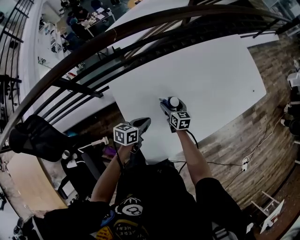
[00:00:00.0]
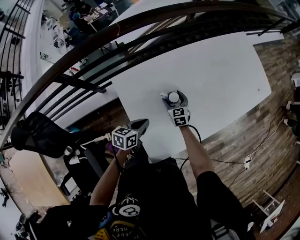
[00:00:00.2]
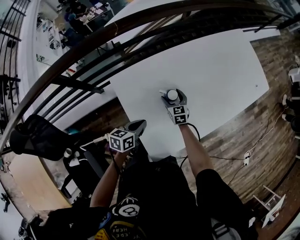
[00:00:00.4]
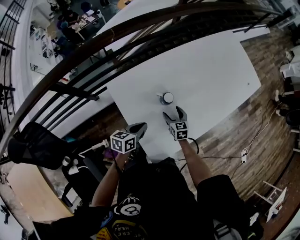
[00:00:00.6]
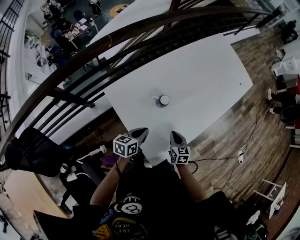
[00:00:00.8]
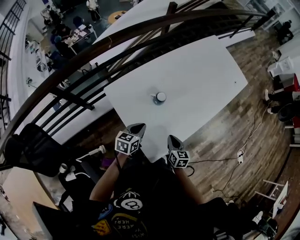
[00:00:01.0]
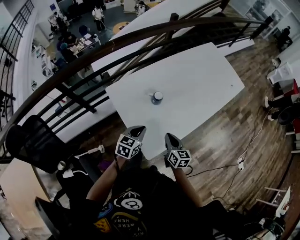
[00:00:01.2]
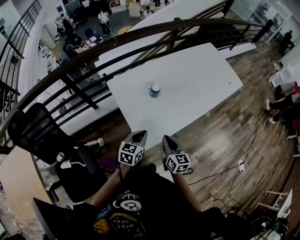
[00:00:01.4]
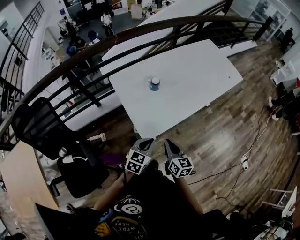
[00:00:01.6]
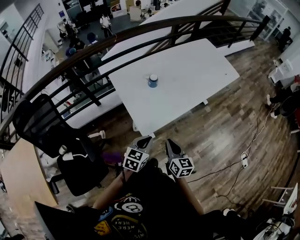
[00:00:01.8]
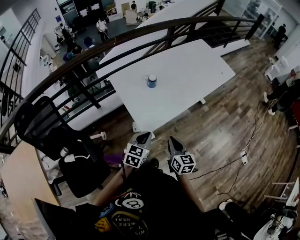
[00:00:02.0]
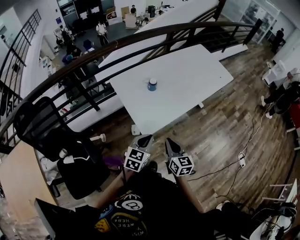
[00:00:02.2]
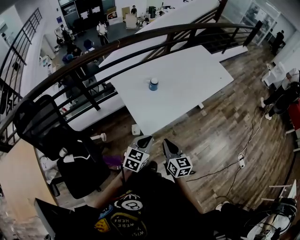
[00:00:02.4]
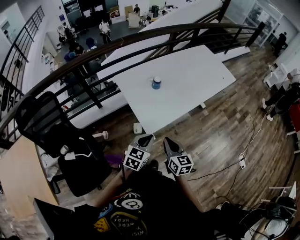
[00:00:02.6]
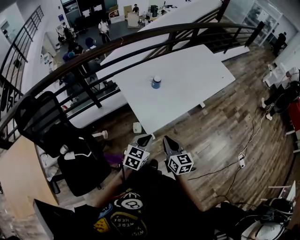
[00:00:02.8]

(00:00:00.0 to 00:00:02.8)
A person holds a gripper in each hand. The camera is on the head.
00:00:00.0 - 00:00:01.4: The left gripper travels backward, upward and to the right by about 25 cm, and swivels roughly 30 degrees; the right gripper is displaced backward and upward by roughly 35 cm, and closes up.
00:00:01.4 - 00:00:02.8: The left gripper travels backward by roughly 15 cm; the right gripper goes approximately 15 cm backward and upward.

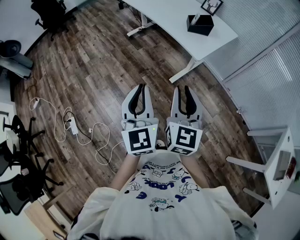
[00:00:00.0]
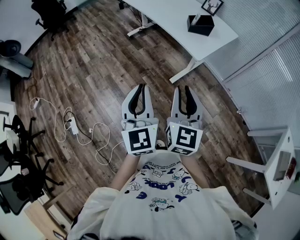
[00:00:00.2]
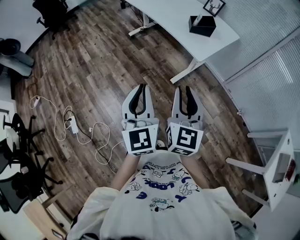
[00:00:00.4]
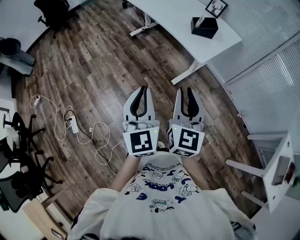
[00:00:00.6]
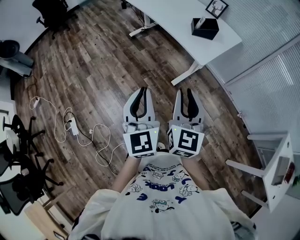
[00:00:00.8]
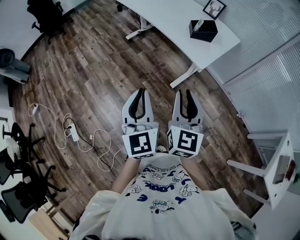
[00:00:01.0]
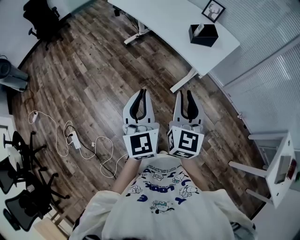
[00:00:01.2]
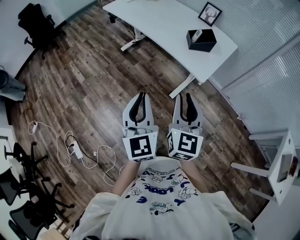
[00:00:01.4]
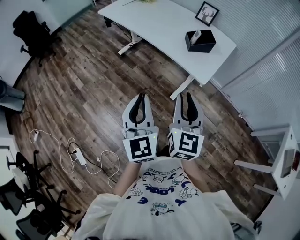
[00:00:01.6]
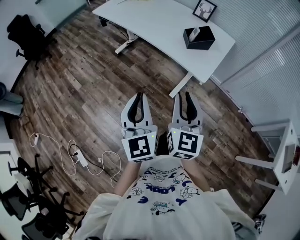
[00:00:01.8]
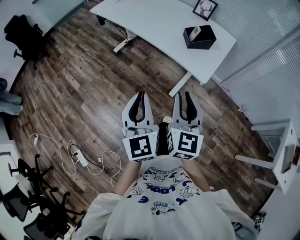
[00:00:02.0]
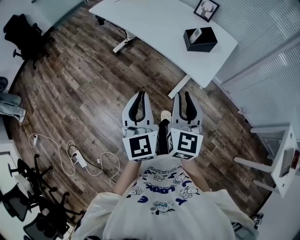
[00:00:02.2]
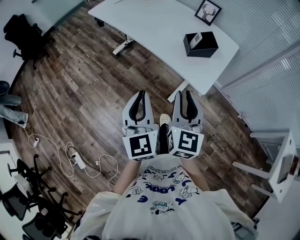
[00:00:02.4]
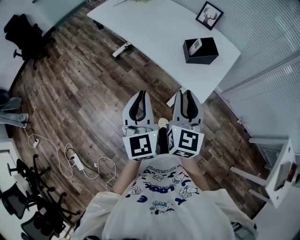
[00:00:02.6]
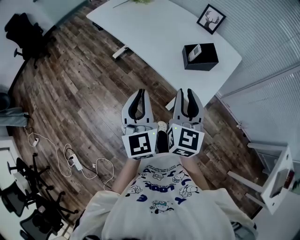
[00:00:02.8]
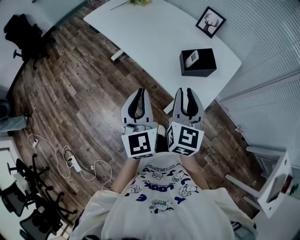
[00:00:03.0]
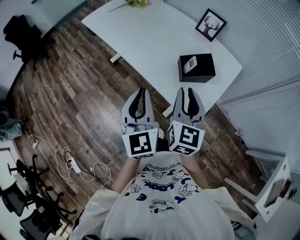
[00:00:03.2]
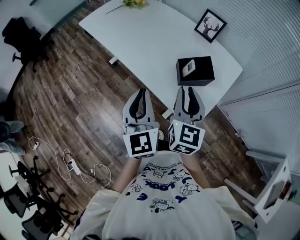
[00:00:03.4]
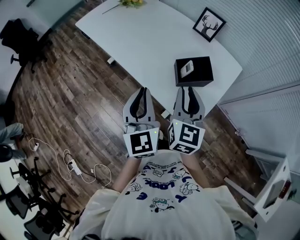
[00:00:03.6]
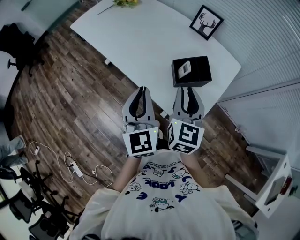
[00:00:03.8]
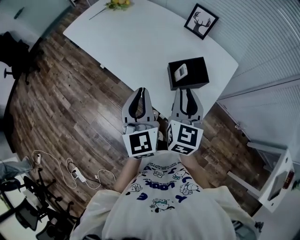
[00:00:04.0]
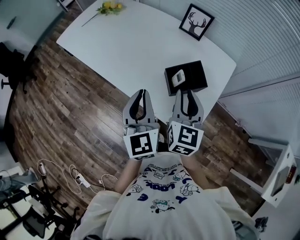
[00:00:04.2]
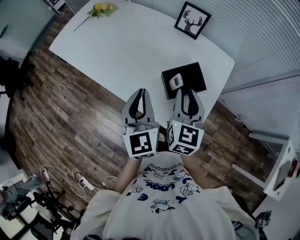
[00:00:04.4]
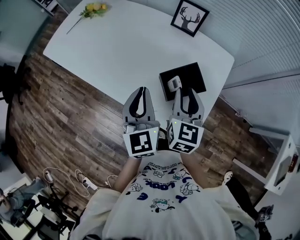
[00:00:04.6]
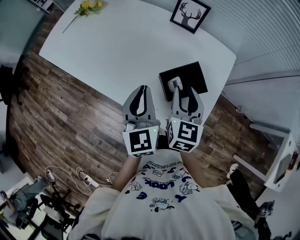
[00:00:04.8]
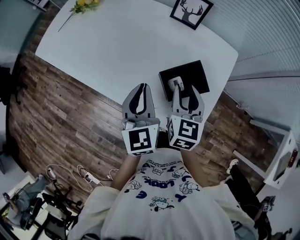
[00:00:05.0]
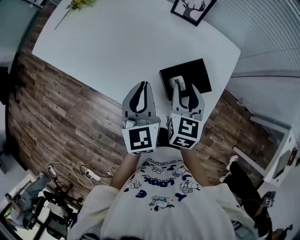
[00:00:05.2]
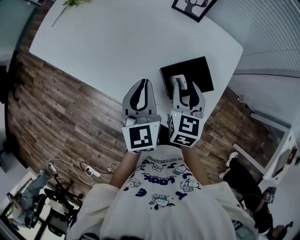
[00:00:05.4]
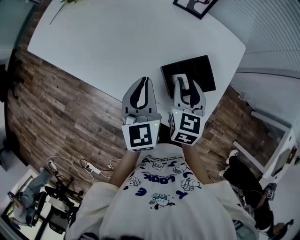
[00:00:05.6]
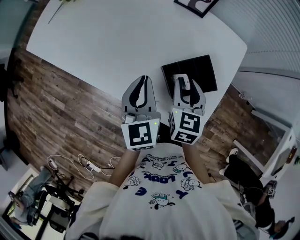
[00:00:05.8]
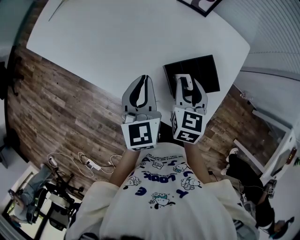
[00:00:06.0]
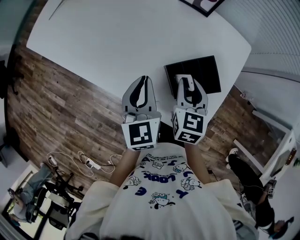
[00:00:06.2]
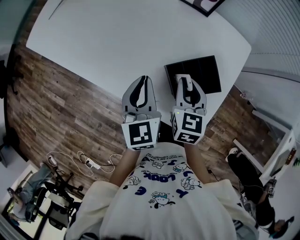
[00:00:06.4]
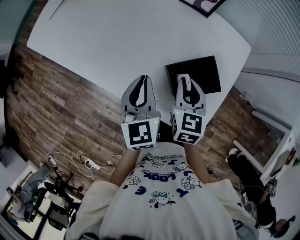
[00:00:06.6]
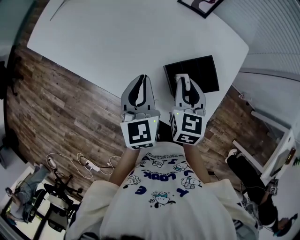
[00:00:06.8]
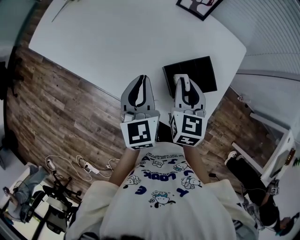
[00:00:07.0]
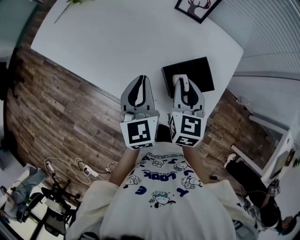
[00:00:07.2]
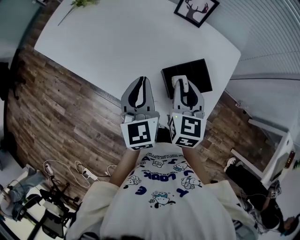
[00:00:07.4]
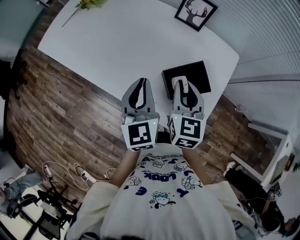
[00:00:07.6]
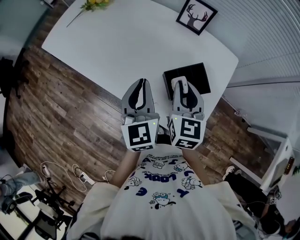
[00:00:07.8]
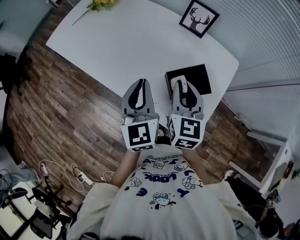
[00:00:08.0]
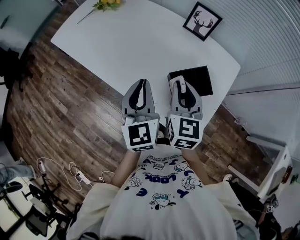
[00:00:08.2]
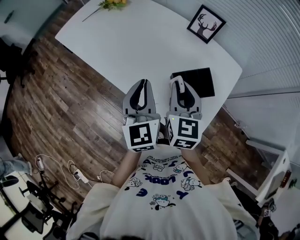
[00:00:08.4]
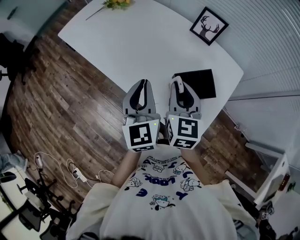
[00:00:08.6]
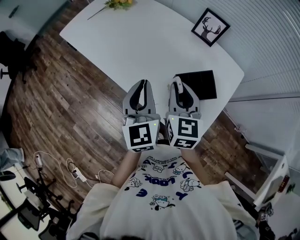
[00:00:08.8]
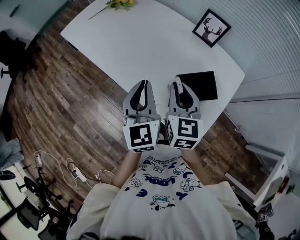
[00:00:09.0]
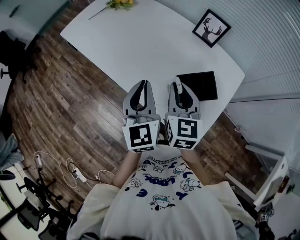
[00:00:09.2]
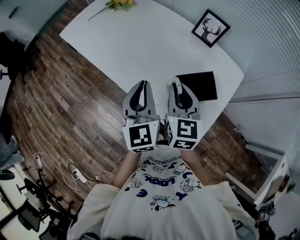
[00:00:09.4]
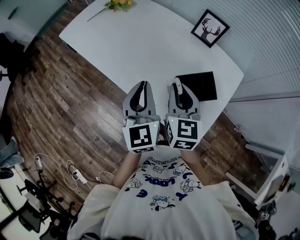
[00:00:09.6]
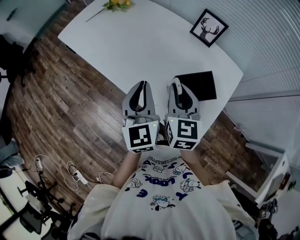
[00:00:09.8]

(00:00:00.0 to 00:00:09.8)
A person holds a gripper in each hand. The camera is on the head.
00:00:00.0 - 00:00:01.4: Both grippers move forward, about 15 cm.
00:00:01.4 - 00:00:02.8: Both grippers travel together forward, about 25 cm.
00:00:02.8 - 00:00:04.2: The right gripper travels forward and to the right by roughly 25 cm. Meanwhile the left gripper moves forward, some 25 cm.
00:00:04.2 - 00:00:05.6: The right gripper is displaced downward and forward by roughly 15 cm, while the left gripper moves forward and downward, approximately 15 cm.
00:00:05.6 - 00:00:07.0: The grippers move only a little.
00:00:07.0 - 00:00:08.4: The right gripper shifts about 10 cm upward and to the left; the left gripper heads upward and backward, covering some 10 cm.
00:00:08.4 - 00:00:09.8: The grippers make only small movements.

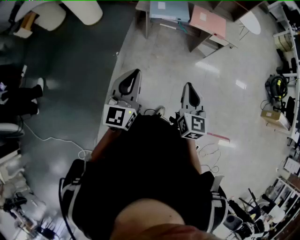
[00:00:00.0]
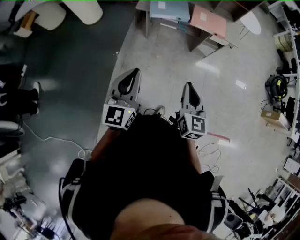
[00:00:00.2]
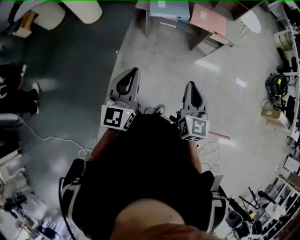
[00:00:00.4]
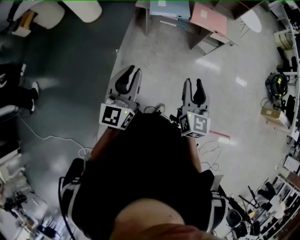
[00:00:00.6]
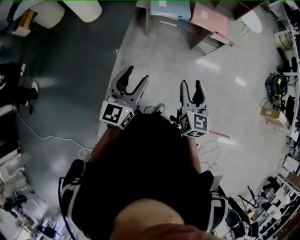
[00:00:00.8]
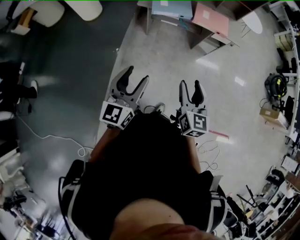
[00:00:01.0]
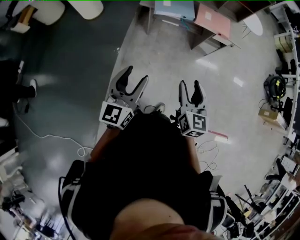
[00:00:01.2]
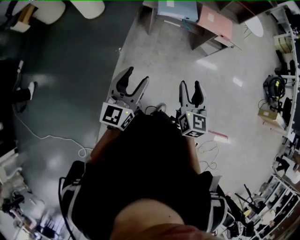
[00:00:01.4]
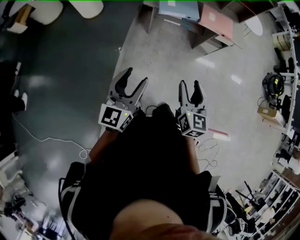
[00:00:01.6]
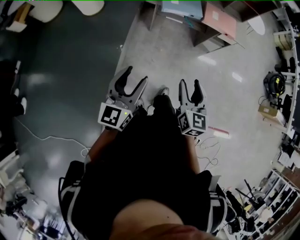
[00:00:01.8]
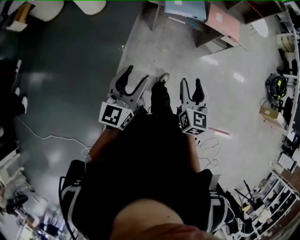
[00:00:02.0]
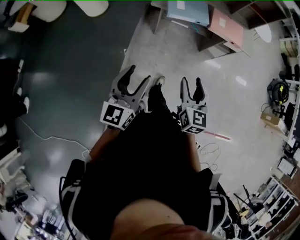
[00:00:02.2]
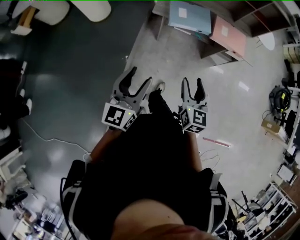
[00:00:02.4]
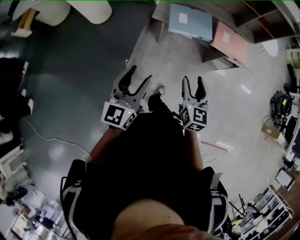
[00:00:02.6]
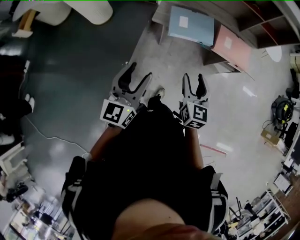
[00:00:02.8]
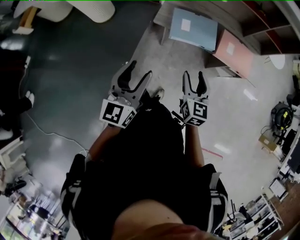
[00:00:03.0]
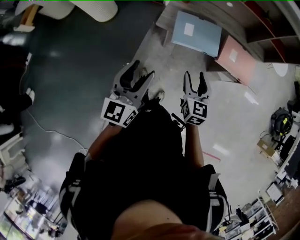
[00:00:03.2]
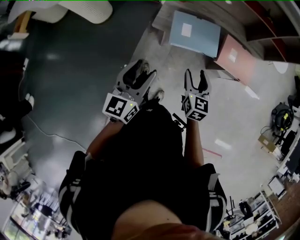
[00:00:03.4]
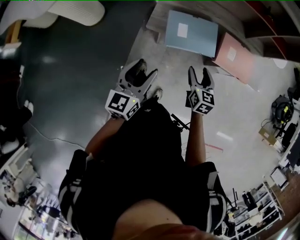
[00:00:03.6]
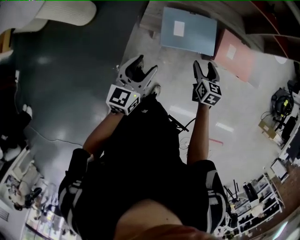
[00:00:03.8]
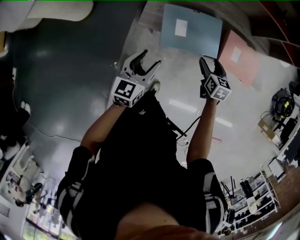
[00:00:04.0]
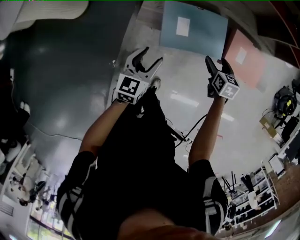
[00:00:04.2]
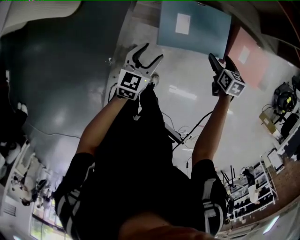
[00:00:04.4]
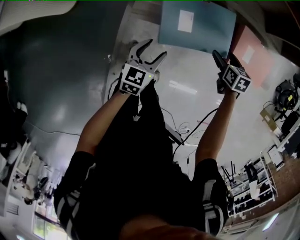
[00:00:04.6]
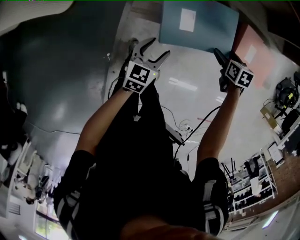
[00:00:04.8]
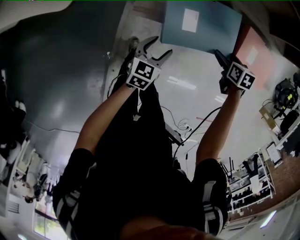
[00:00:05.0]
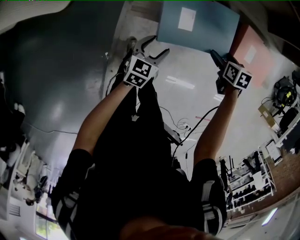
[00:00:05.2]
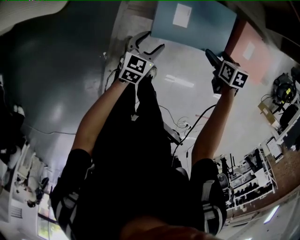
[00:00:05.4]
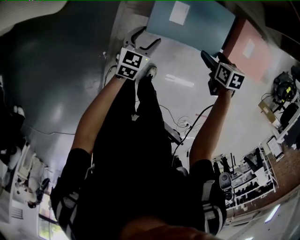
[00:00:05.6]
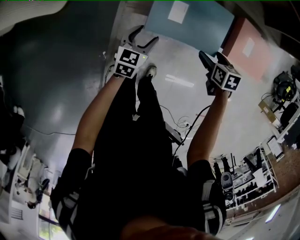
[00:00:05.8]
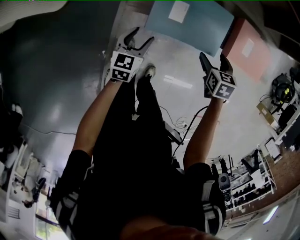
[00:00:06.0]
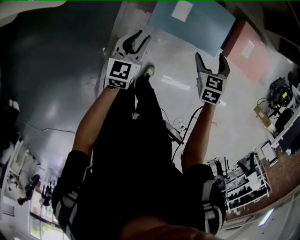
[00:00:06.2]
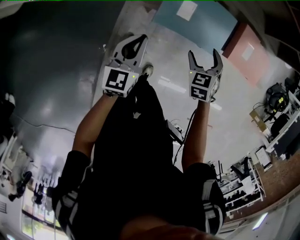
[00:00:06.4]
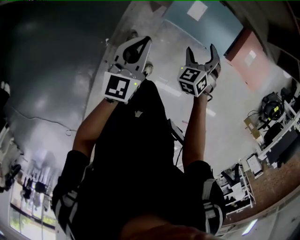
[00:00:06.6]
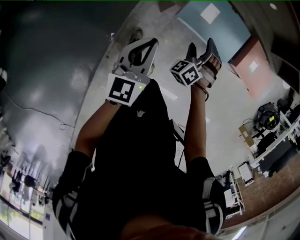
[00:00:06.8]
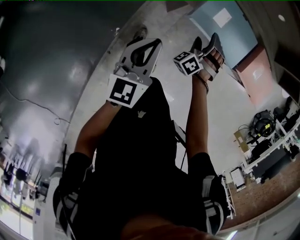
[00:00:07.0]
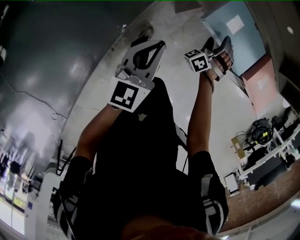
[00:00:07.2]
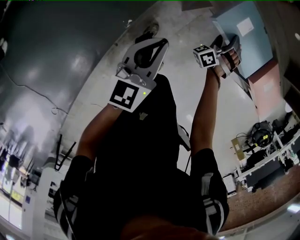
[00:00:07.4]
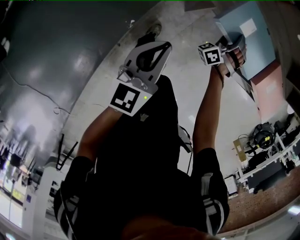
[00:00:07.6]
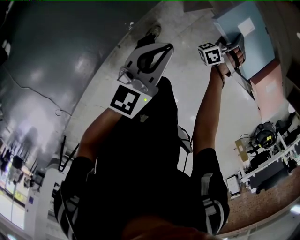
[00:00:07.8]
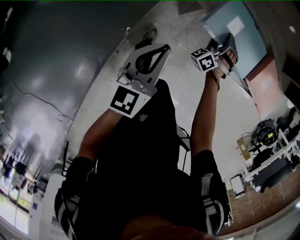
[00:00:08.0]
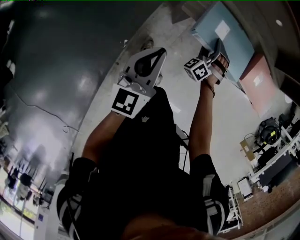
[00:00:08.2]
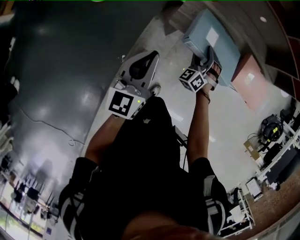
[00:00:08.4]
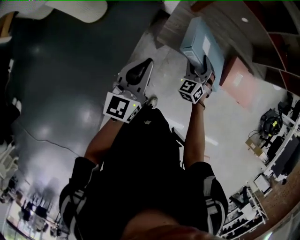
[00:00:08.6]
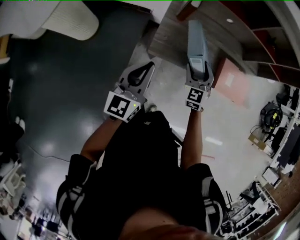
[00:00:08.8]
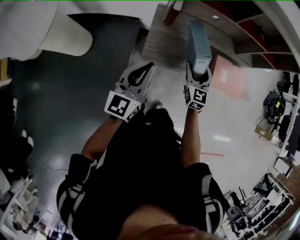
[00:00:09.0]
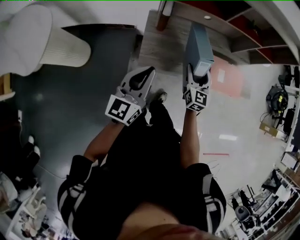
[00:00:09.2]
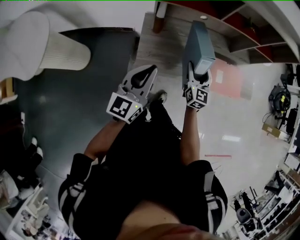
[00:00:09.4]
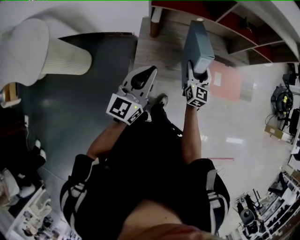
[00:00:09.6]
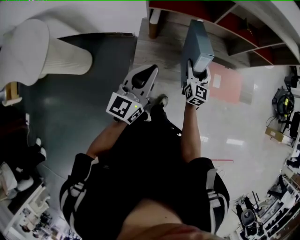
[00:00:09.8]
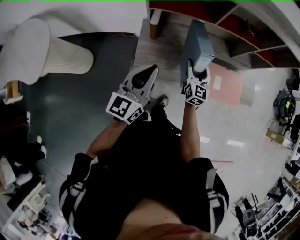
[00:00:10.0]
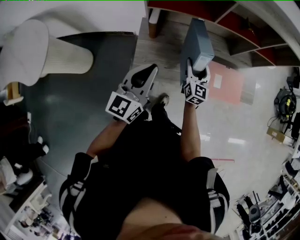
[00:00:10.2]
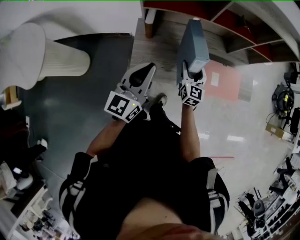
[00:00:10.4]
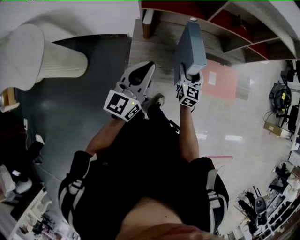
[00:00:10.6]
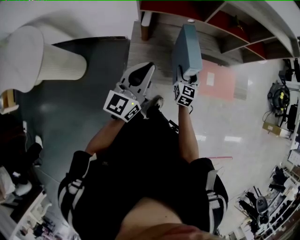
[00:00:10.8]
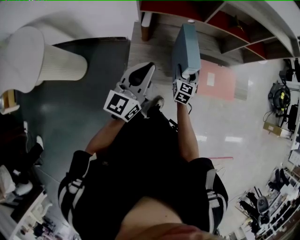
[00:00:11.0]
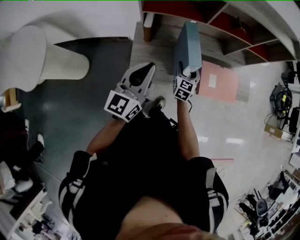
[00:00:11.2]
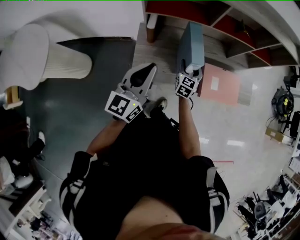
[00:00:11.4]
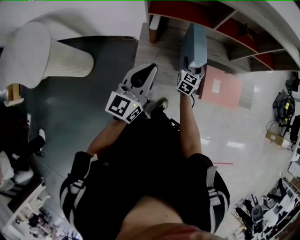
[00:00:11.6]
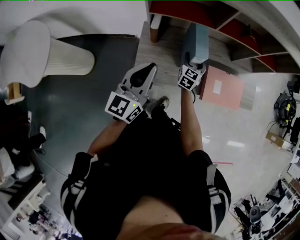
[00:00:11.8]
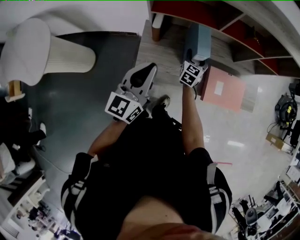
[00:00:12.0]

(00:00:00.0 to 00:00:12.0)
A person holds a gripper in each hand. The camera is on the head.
00:00:00.0 - 00:00:01.6: The grippers both shift to the left by some 10 cm. The left gripper opens its fingers. Meanwhile the right gripper opens its fingers.
00:00:01.6 - 00:00:03.0: The grippers both shift forward by approximately 30 cm.
00:00:03.0 - 00:00:04.4: The right gripper is displaced downward, forward and to the right by roughly 40 cm, and tilts its fingers about 30 degrees downward; the left gripper travels downward and forward by about 40 cm, and turns by some 30 degrees.
00:00:04.4 - 00:00:06.0: The right gripper shifts by approximately 5 cm. The left gripper moves downward, roughly 5 cm.
00:00:06.0 - 00:00:07.6: The right gripper travels to the left and downward by roughly 20 cm, and rotates around the line of its fingers by approximately 70 degrees, counterclockwise from behind, while the left gripper is displaced backward, upward and to the left by some 25 cm, turns by approximately 30 degrees, and closes.
00:00:07.6 - 00:00:09.0: The left gripper travels forward and upward by roughly 30 cm, and changes its angle by approximately 30 degrees; the right gripper is displaced upward by about 25 cm, and rolls clockwise, seen from behind, by approximately 80 degrees.
00:00:09.0 - 00:00:10.4: The grippers both shift forward and to the right by about 15 cm.
00:00:10.4 - 00:00:12.0: The right gripper goes approximately 10 cm forward and downward.
